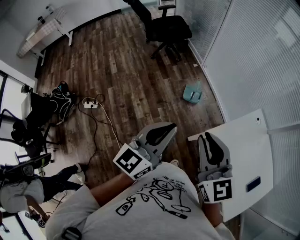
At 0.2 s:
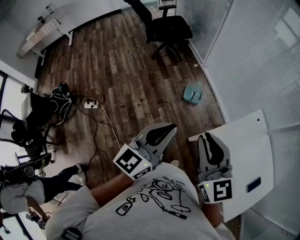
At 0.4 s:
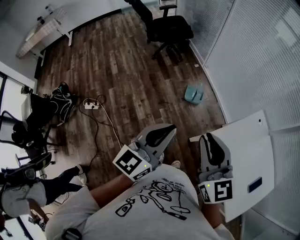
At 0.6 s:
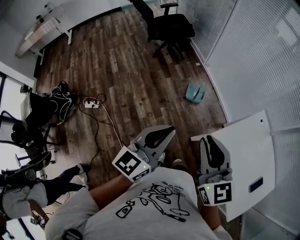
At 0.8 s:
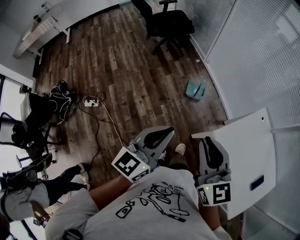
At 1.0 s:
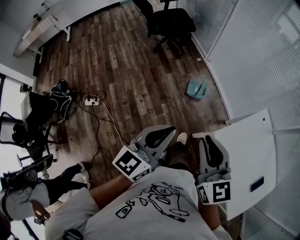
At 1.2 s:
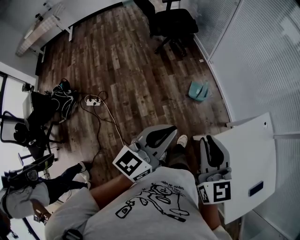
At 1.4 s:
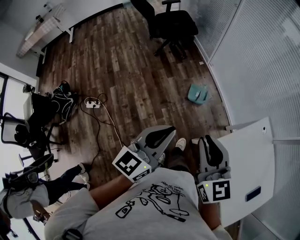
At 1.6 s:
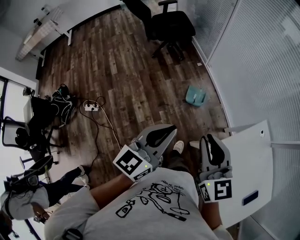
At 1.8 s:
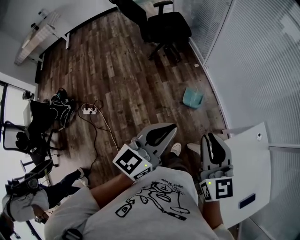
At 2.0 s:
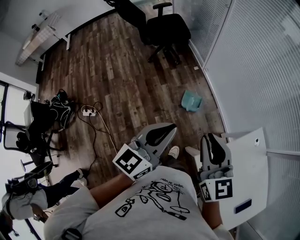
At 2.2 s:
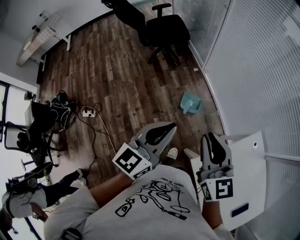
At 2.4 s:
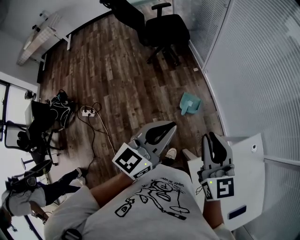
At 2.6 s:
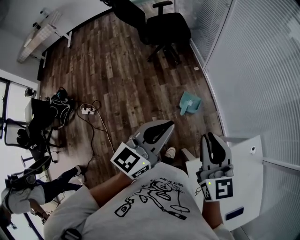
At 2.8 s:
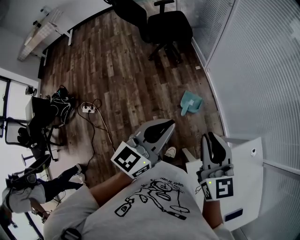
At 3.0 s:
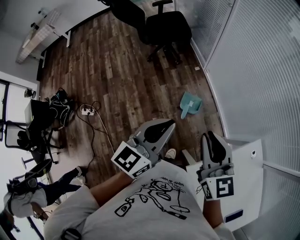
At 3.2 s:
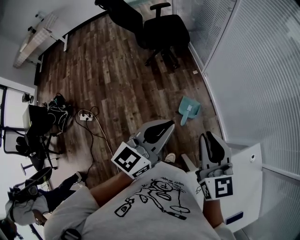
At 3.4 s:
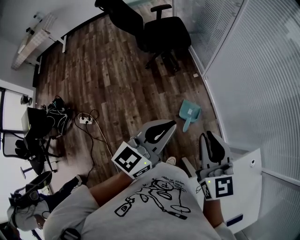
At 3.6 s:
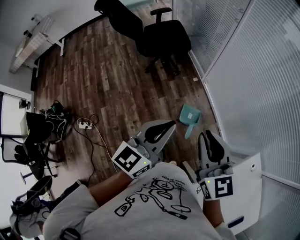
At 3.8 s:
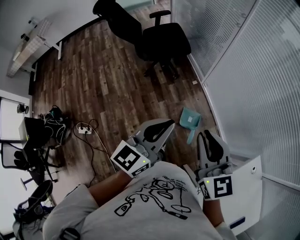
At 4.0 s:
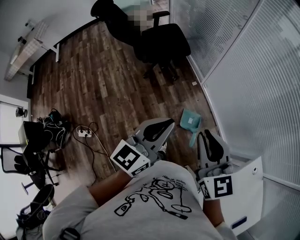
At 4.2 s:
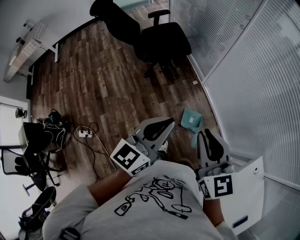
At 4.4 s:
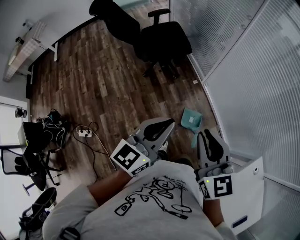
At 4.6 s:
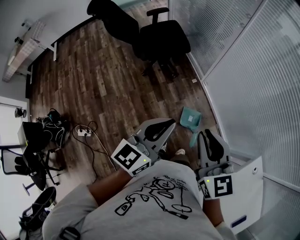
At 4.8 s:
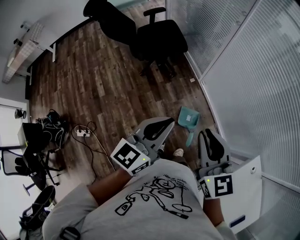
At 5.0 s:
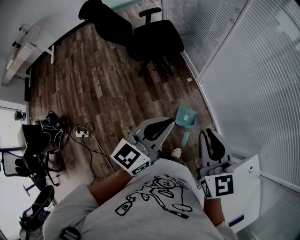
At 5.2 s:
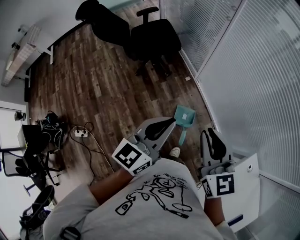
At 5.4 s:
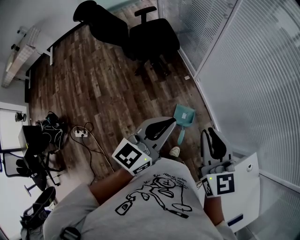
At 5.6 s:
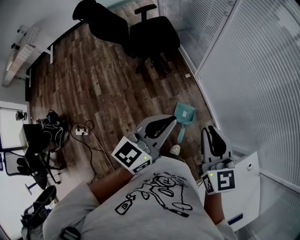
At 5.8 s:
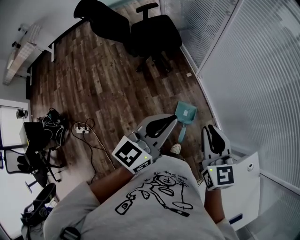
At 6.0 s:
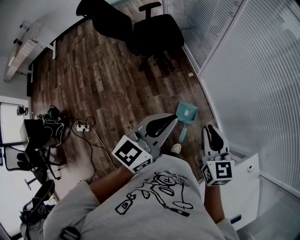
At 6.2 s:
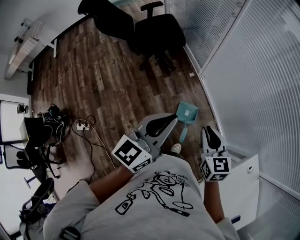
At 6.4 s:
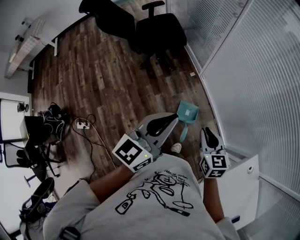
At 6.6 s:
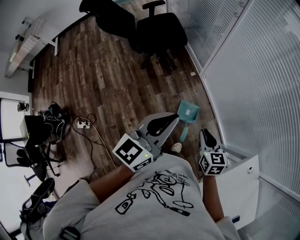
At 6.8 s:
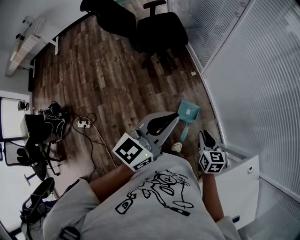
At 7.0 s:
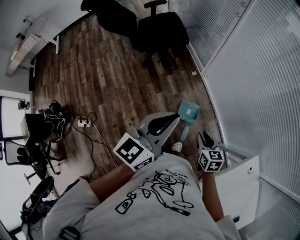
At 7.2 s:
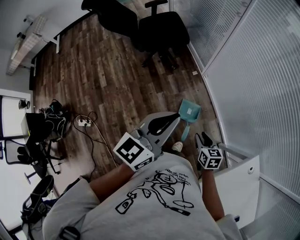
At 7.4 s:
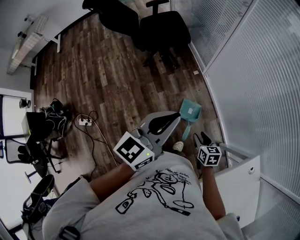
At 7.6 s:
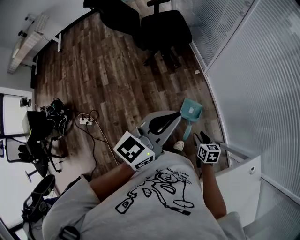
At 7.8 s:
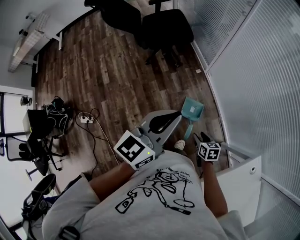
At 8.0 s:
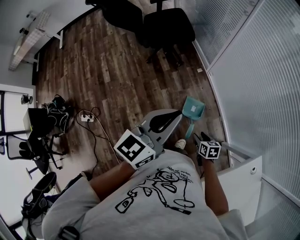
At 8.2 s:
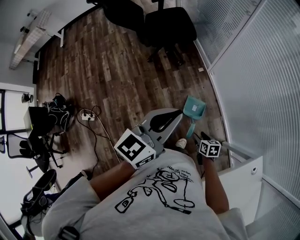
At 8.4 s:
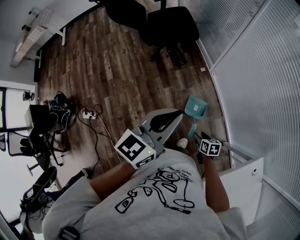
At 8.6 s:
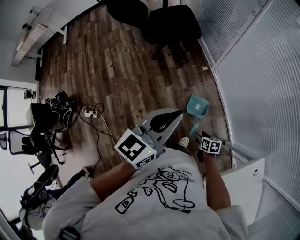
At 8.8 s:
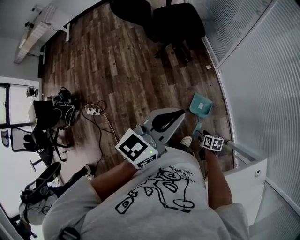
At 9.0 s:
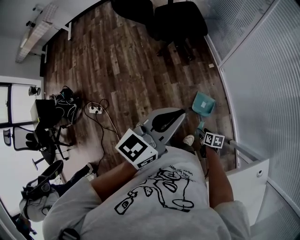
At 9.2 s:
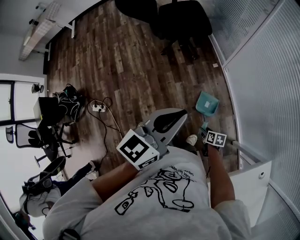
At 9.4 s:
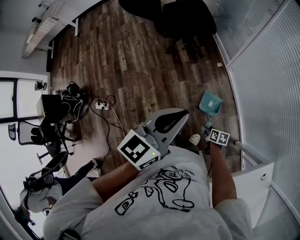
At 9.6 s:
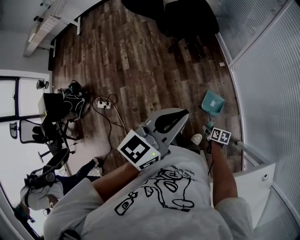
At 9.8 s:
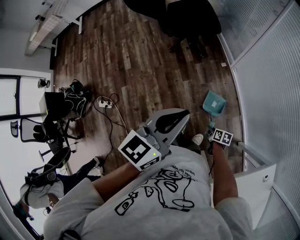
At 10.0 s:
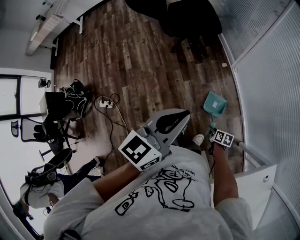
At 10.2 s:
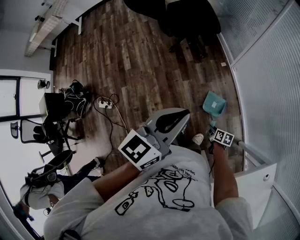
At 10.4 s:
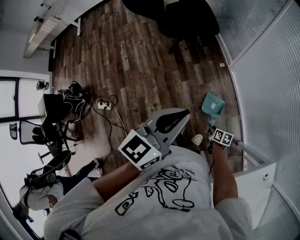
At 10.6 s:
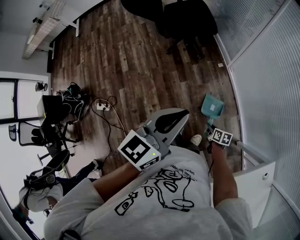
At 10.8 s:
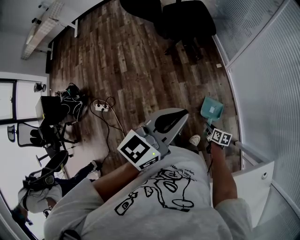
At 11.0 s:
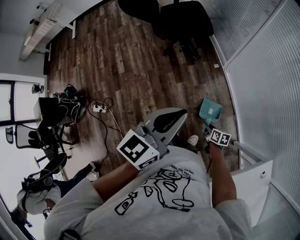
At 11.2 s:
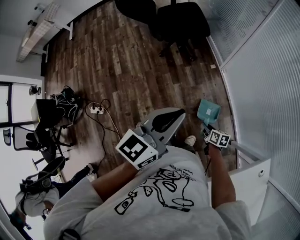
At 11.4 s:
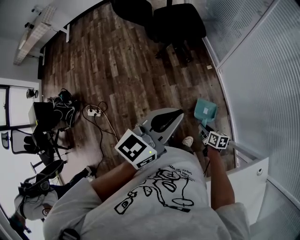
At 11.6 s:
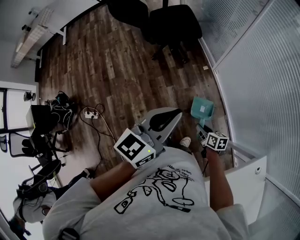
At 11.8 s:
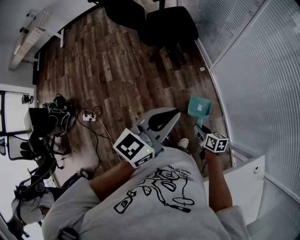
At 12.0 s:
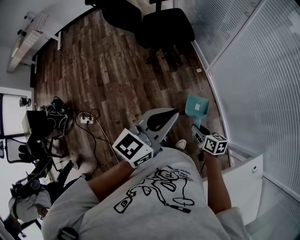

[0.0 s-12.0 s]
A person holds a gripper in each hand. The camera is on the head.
0.0 to 1.6 s: Both grippers travel together forward, about 15 cm.
1.6 to 3.0 s: Both grippers travel together forward and to the right, about 20 cm.
3.0 to 4.4 s: The right gripper goes roughly 25 cm to the left and forward. Meanwhile the left gripper travels forward and to the left by approximately 25 cm.
4.4 to 6.0 s: The right gripper moves to the right and downward, approximately 15 cm; the left gripper moves to the right, approximately 10 cm.
6.0 to 7.6 s: The right gripper travels downward by some 25 cm, rotates approximately 30 degrees, and opens.
7.6 to 9.0 s: The right gripper is displaced downward by about 15 cm, and changes its angle by about 20 degrees.
9.0 to 10.4 s: The right gripper closes.
10.4 to 12.0 s: The right gripper heads upward, covering about 20 cm.

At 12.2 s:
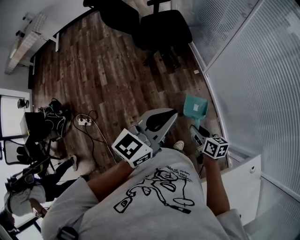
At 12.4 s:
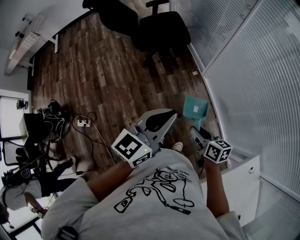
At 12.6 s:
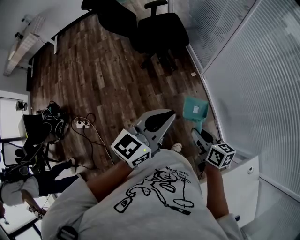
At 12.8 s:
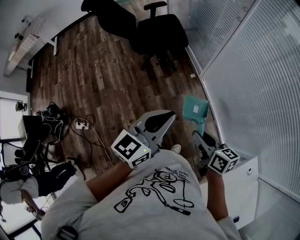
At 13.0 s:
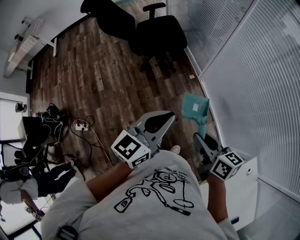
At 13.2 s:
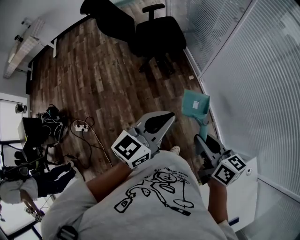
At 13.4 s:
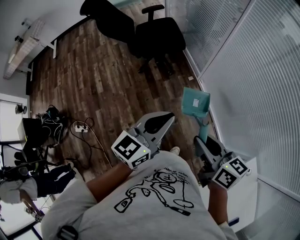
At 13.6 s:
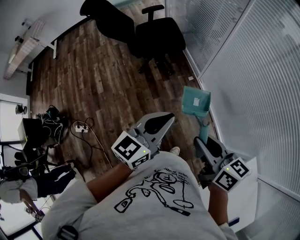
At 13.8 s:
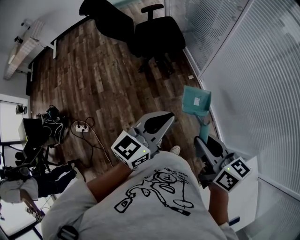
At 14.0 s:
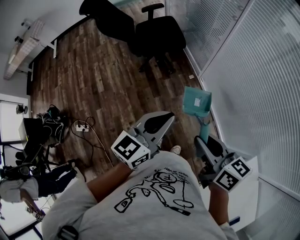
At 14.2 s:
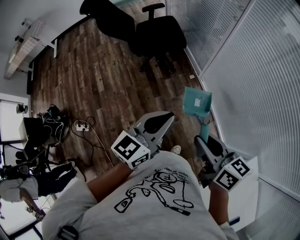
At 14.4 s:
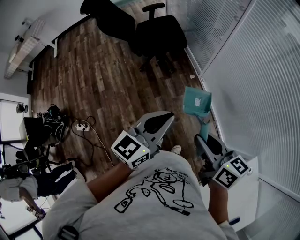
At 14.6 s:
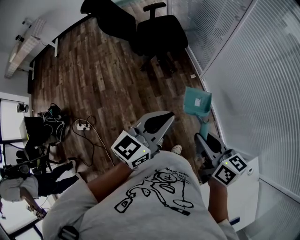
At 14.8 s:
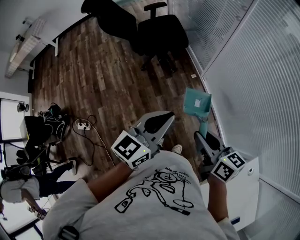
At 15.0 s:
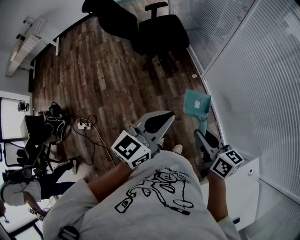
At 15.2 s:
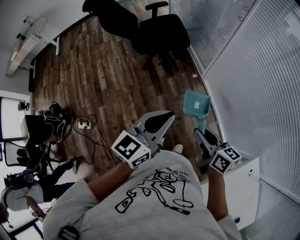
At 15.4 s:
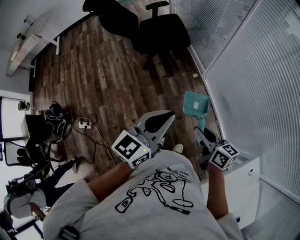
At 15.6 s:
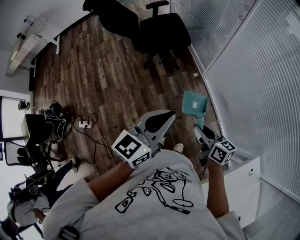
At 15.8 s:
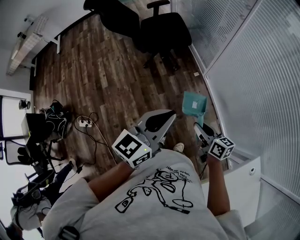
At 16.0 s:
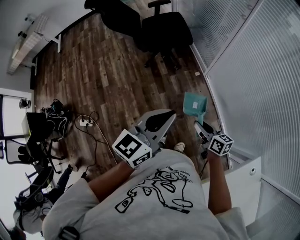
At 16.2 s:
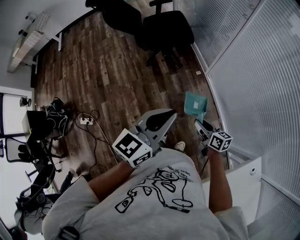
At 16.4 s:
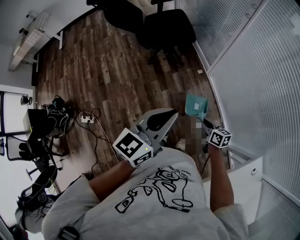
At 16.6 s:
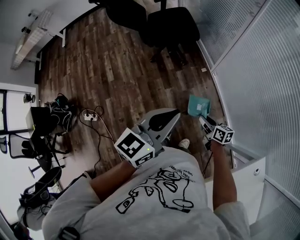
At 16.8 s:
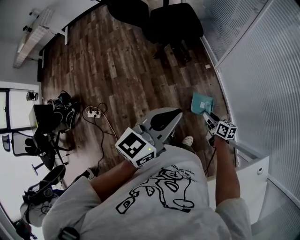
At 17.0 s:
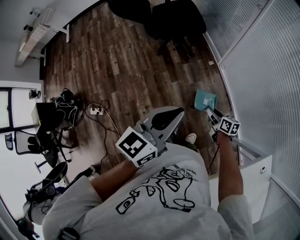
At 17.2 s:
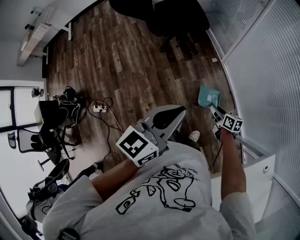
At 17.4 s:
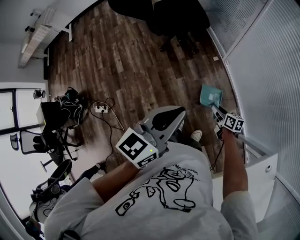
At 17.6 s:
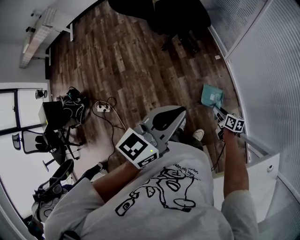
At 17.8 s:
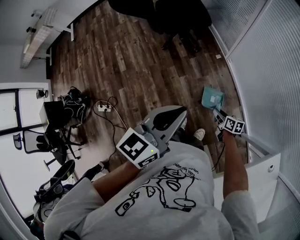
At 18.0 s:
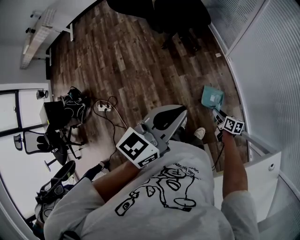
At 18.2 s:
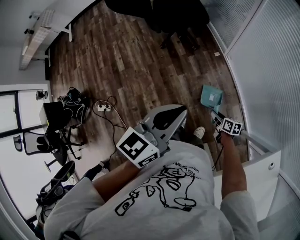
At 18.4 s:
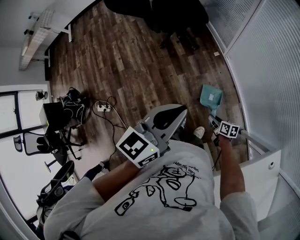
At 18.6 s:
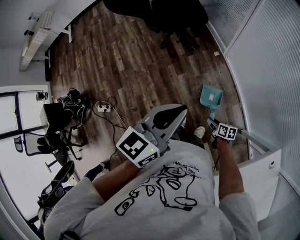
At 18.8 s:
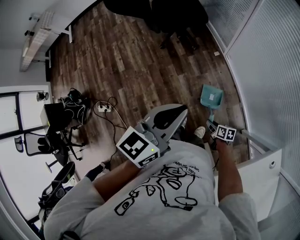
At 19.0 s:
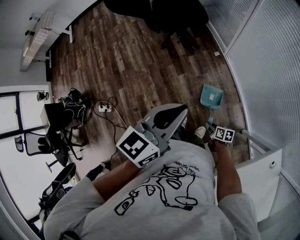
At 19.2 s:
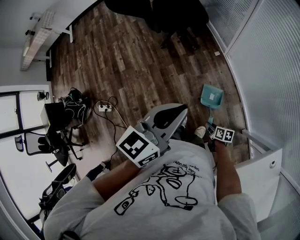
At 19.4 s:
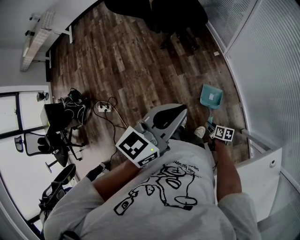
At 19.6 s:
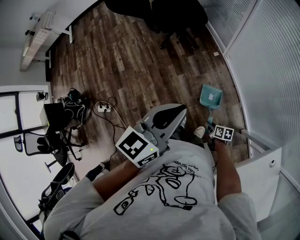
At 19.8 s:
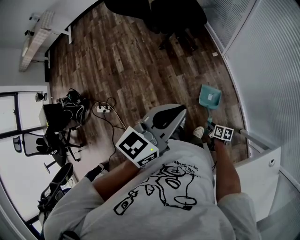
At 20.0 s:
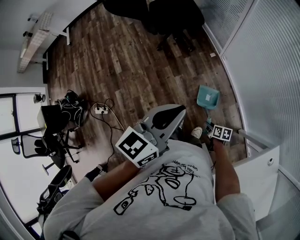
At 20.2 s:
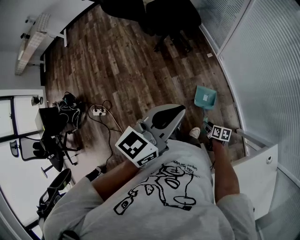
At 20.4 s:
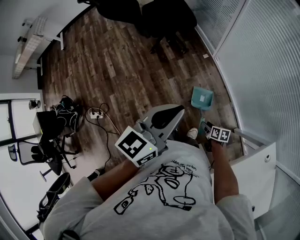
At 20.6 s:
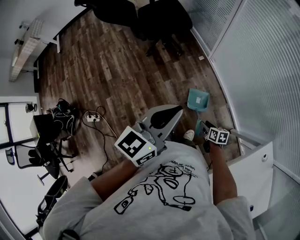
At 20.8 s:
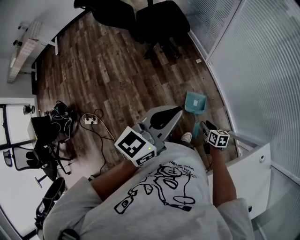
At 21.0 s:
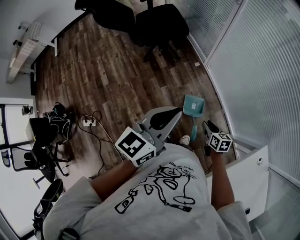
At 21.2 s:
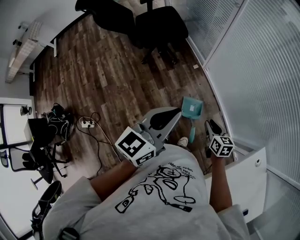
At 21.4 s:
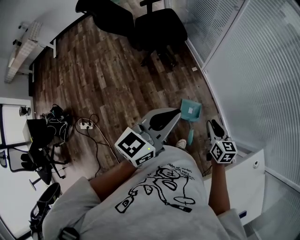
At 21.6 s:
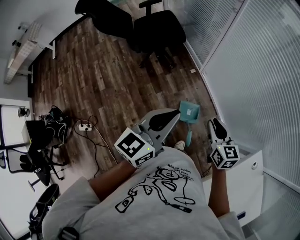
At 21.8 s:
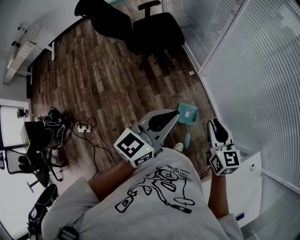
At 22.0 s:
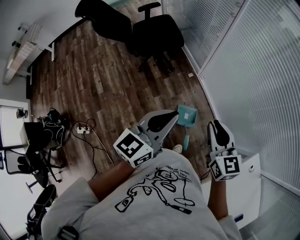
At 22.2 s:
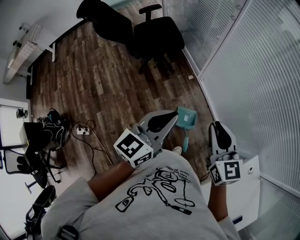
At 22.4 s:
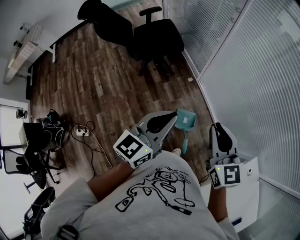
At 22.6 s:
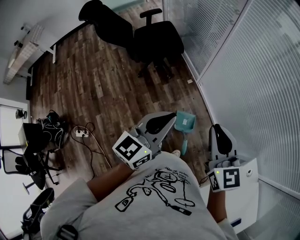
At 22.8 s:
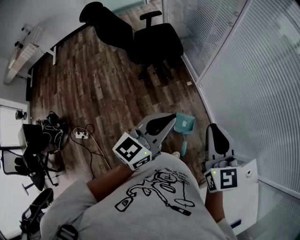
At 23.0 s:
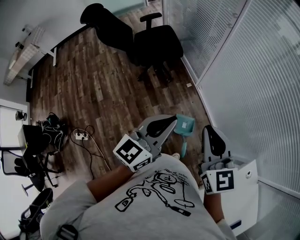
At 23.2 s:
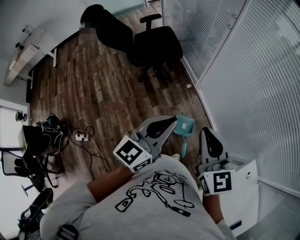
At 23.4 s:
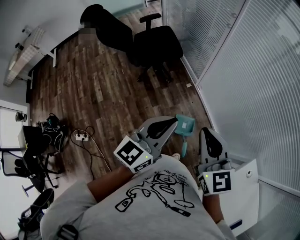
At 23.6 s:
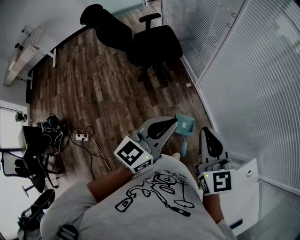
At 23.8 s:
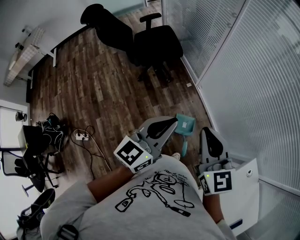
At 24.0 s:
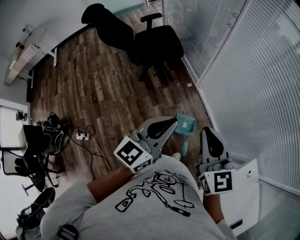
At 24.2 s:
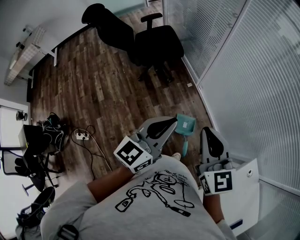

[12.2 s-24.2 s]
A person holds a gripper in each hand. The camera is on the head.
12.2 to 13.8 s: The right gripper heads upward, covering approximately 25 cm.
13.8 to 15.2 s: The right gripper heads downward, covering approximately 10 cm.
15.2 to 16.6 s: The right gripper goes roughly 20 cm downward.
16.6 to 18.2 s: The right gripper travels downward by some 15 cm.
18.2 to 19.8 s: The right gripper moves backward, about 10 cm.
19.8 to 21.2 s: The right gripper shifts some 20 cm upward and forward, and rotates about 30 degrees.
21.2 to 22.6 s: The right gripper goes about 30 cm upward, and rotates about 40 degrees.
22.6 to 24.2 s: The grippers move only a little.
